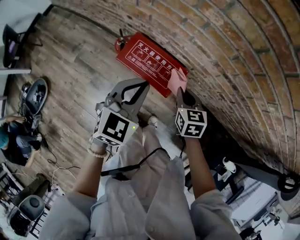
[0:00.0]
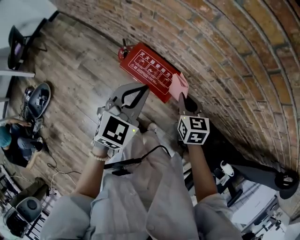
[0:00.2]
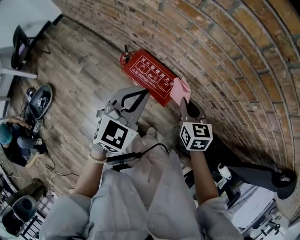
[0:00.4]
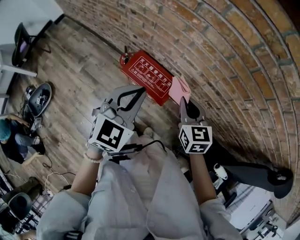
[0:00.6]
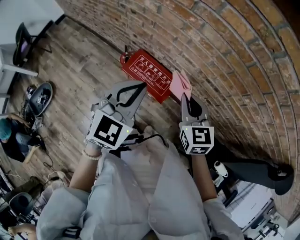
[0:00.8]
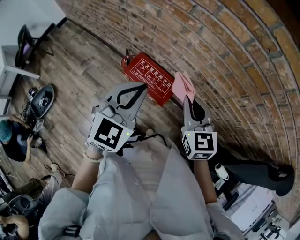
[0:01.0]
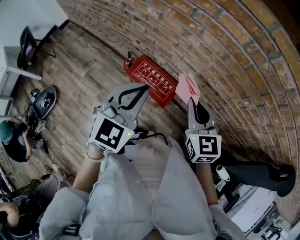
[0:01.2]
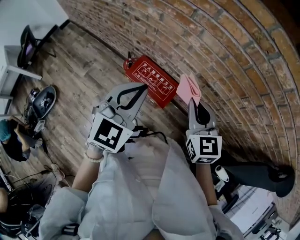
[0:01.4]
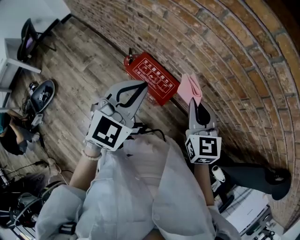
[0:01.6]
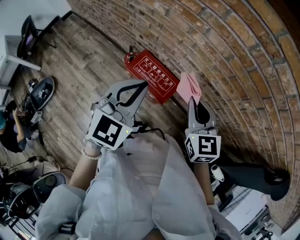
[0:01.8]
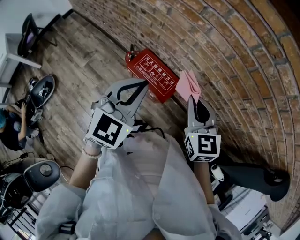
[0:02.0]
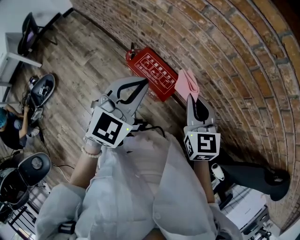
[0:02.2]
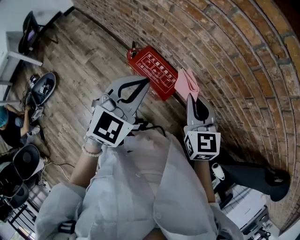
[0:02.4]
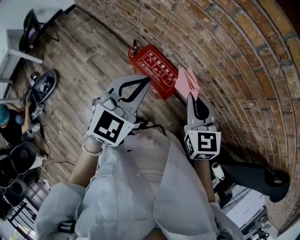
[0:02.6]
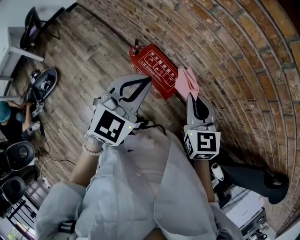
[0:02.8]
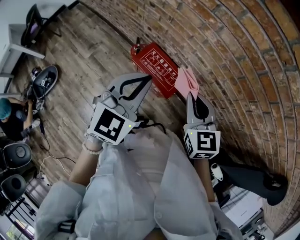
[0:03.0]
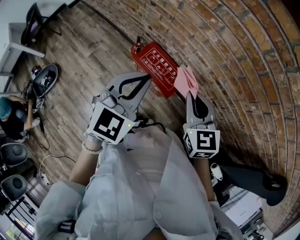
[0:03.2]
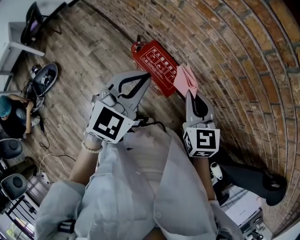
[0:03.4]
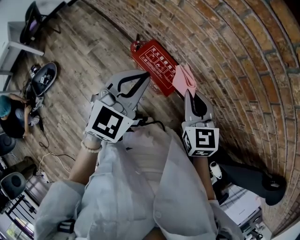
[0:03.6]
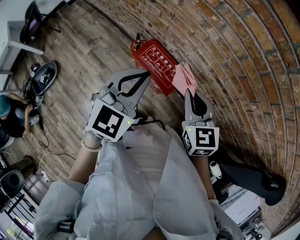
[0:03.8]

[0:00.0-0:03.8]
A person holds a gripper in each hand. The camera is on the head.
0:00.0 to 0:01.2: Both grippers travel together upward, roughly 25 cm. The right gripper rotates approximately 30 degrees.
0:01.2 to 0:03.8: The grippers stay close to where they were, moving slightly.

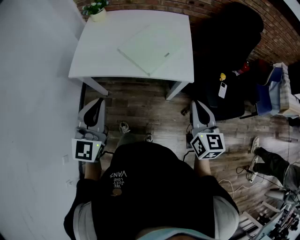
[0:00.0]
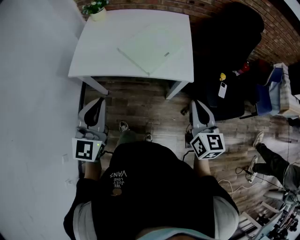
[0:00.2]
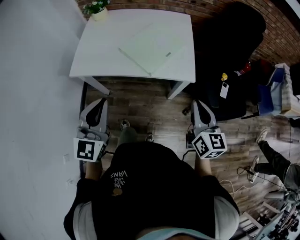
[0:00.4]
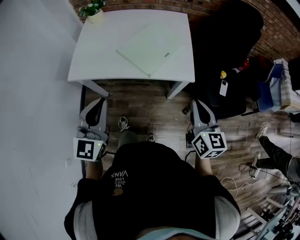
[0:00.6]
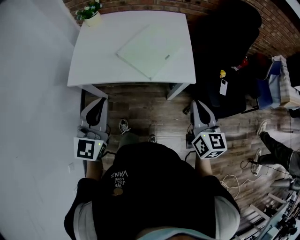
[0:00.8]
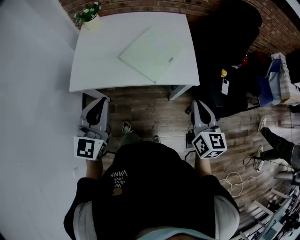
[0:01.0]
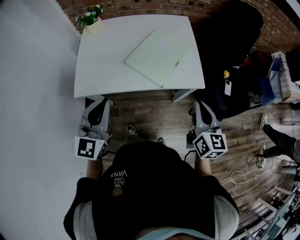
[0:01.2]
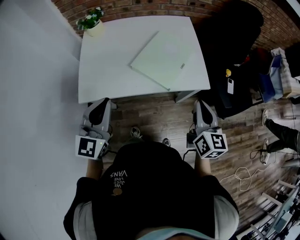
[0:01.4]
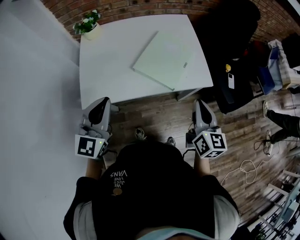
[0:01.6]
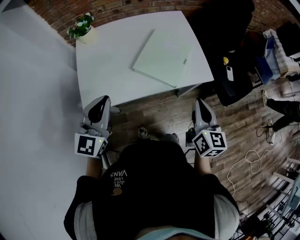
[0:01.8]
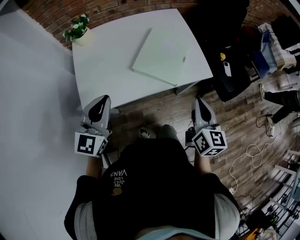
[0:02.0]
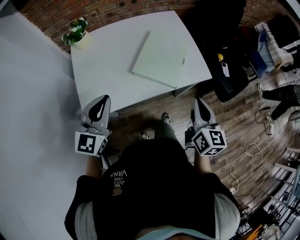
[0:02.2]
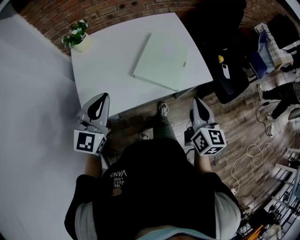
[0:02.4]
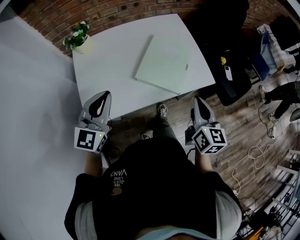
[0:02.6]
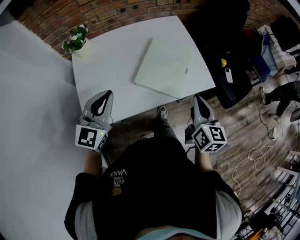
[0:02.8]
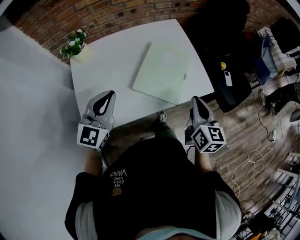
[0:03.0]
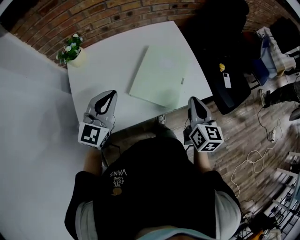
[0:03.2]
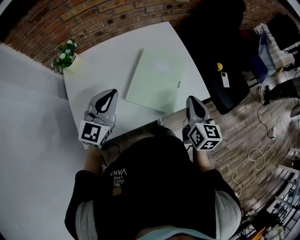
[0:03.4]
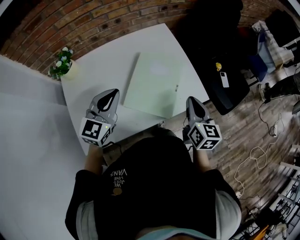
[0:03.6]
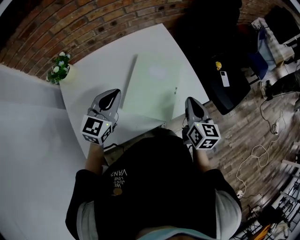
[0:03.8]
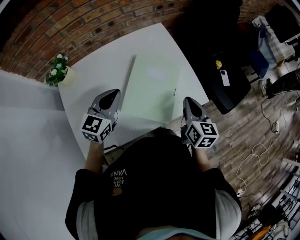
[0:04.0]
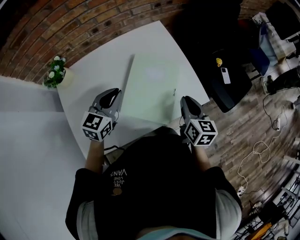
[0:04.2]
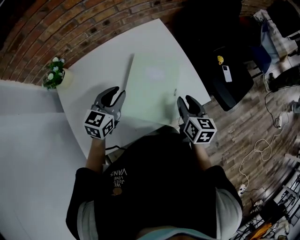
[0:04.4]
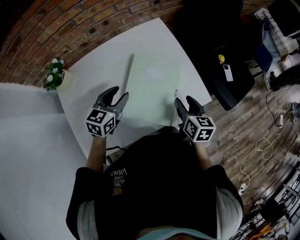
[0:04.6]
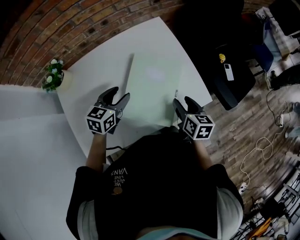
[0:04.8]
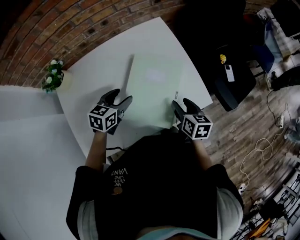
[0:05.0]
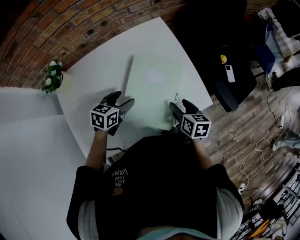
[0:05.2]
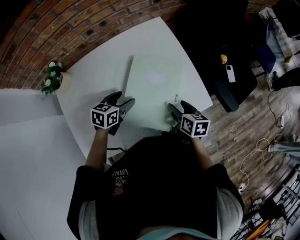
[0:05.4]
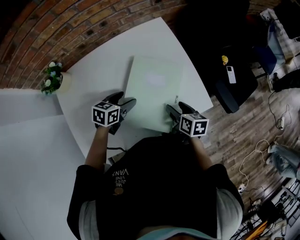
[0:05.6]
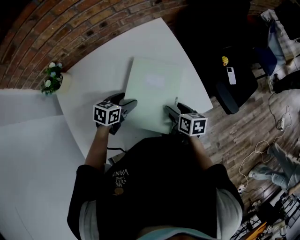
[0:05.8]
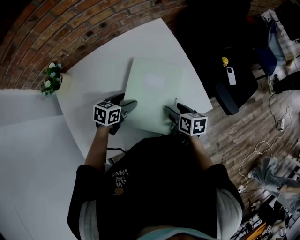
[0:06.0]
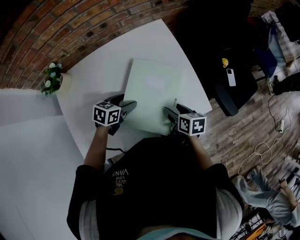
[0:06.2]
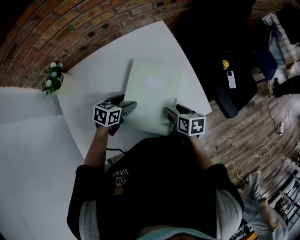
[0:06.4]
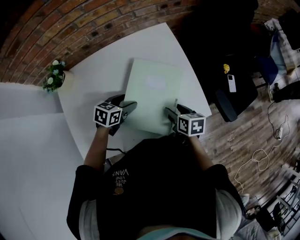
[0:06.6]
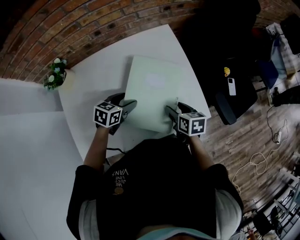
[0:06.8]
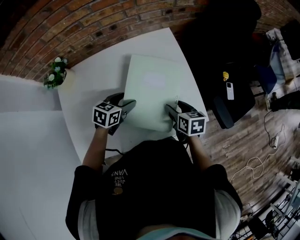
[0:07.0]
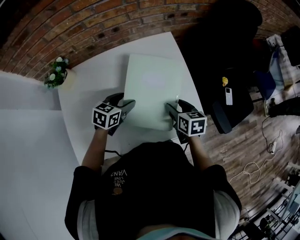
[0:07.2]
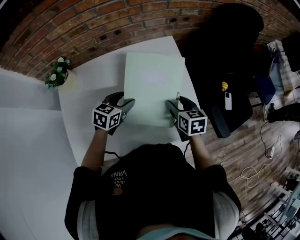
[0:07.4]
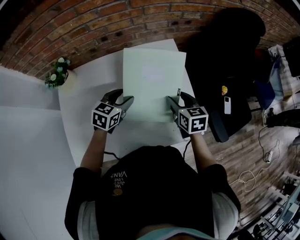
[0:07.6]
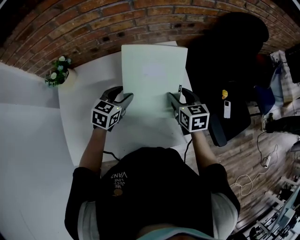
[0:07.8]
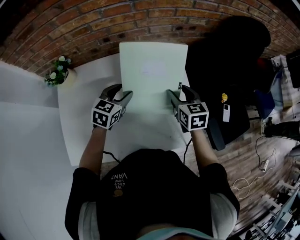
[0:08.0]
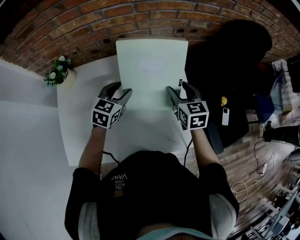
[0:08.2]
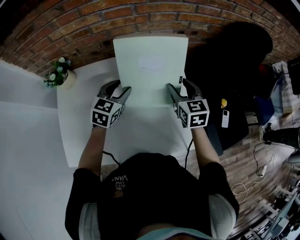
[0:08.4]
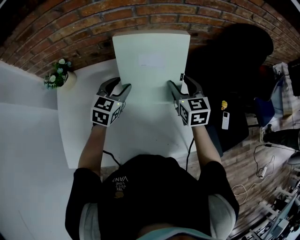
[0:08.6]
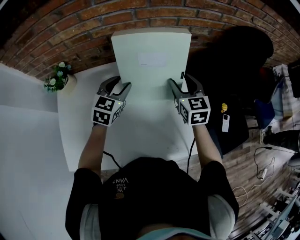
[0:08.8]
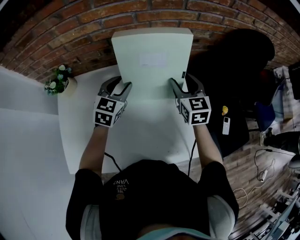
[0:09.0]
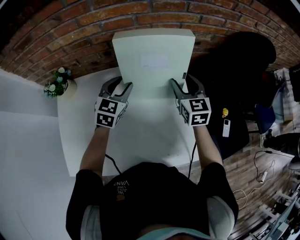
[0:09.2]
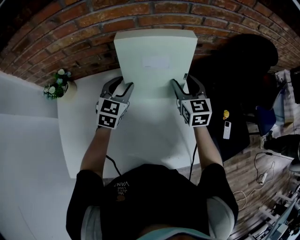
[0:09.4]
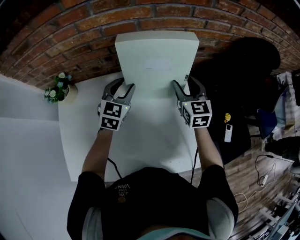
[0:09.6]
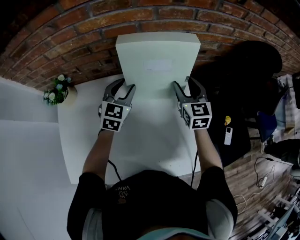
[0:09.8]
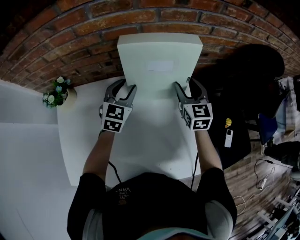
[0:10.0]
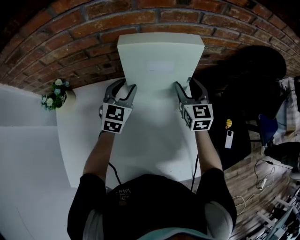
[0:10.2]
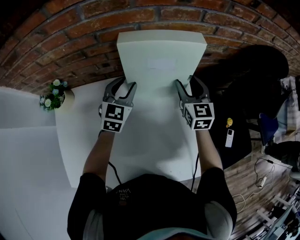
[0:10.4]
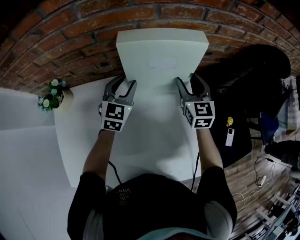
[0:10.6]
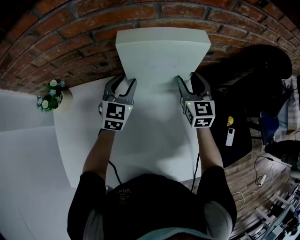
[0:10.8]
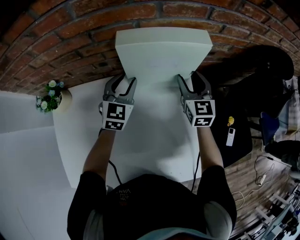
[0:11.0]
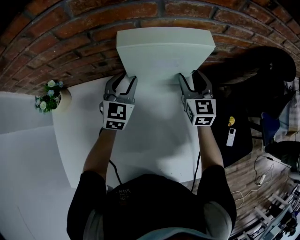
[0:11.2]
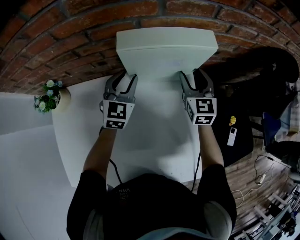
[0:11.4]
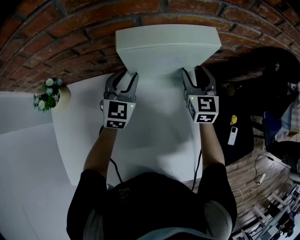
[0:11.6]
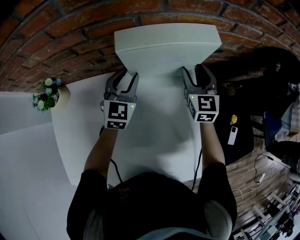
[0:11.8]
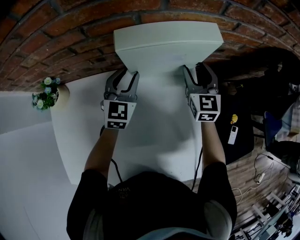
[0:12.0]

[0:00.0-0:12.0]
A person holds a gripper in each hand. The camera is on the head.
0:00.0 to 0:01.6: The right gripper heads to the left and forward, covering some 15 cm, and swivels about 20 degrees; the left gripper is displaced forward and to the left by about 20 cm.
0:01.6 to 0:03.0: The right gripper travels forward by roughly 5 cm. Meanwhile the left gripper goes about 15 cm forward.
0:03.0 to 0:04.4: Both grippers travel together forward and downward, approximately 15 cm. The right gripper opens its fingers, while the left gripper changes its angle by roughly 20 degrees.
0:04.4 to 0:06.0: Both grippers move downward, roughly 10 cm. The right gripper rotates about 30 degrees, and opens up. Meanwhile the left gripper swivels approximately 30 degrees, and opens its fingers.
0:06.0 to 0:07.6: The left gripper heads upward and forward, covering approximately 10 cm, and rotates about 20 degrees. Meanwhile the right gripper moves forward and upward, some 15 cm, and rotates about 30 degrees.
0:07.6 to 0:09.0: Both grippers move forward and upward, some 15 cm. The right gripper turns by some 20 degrees. Meanwhile the left gripper changes its angle by some 20 degrees.
0:09.0 to 0:10.4: Both grippers travel together forward, roughly 10 cm.
0:10.4 to 0:12.0: The right gripper is displaced forward by some 5 cm.

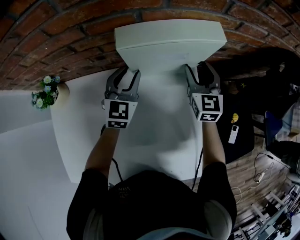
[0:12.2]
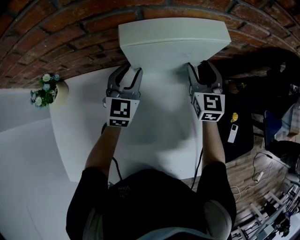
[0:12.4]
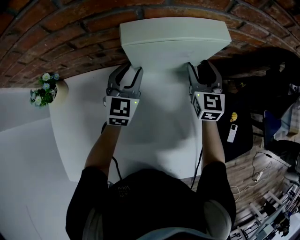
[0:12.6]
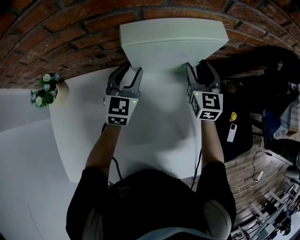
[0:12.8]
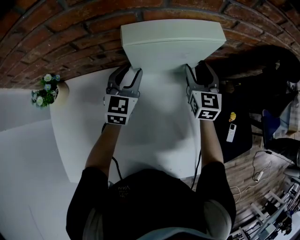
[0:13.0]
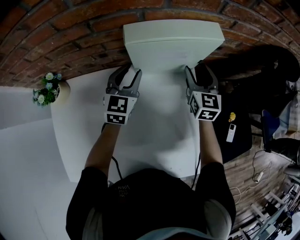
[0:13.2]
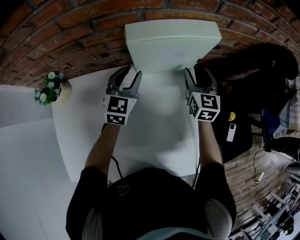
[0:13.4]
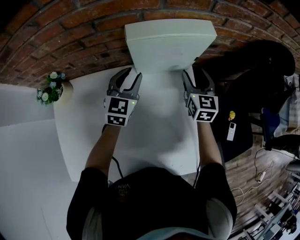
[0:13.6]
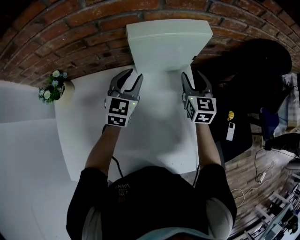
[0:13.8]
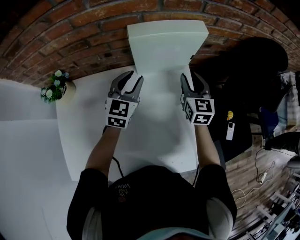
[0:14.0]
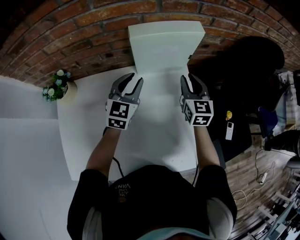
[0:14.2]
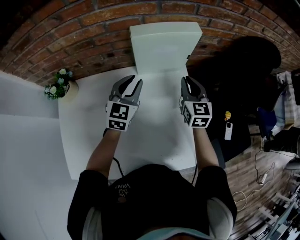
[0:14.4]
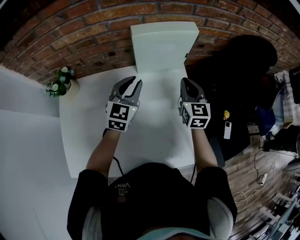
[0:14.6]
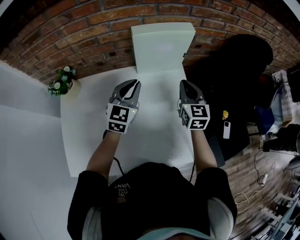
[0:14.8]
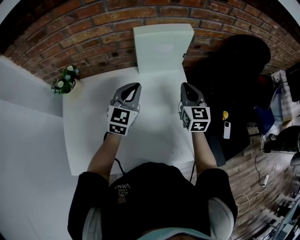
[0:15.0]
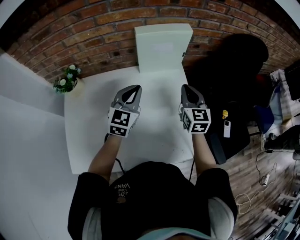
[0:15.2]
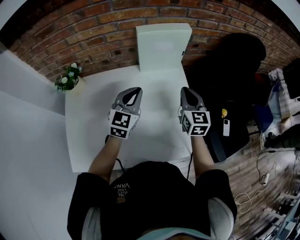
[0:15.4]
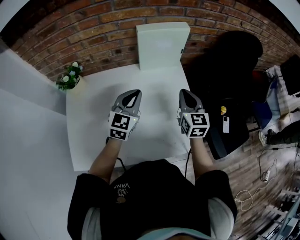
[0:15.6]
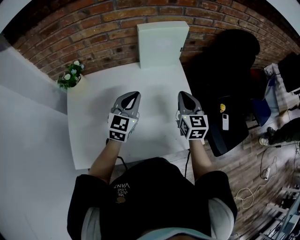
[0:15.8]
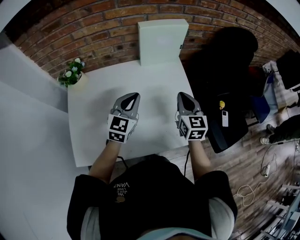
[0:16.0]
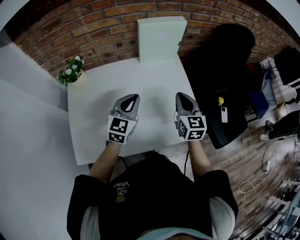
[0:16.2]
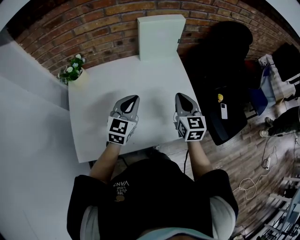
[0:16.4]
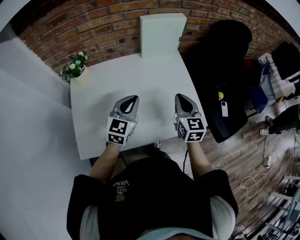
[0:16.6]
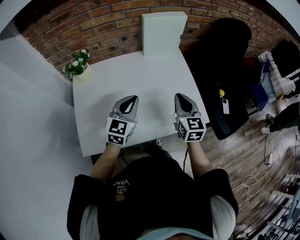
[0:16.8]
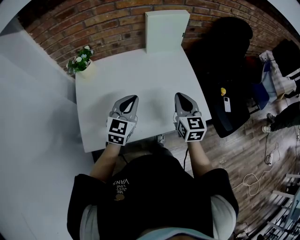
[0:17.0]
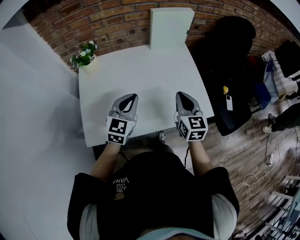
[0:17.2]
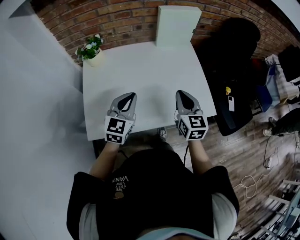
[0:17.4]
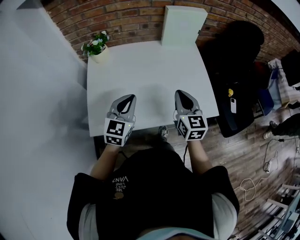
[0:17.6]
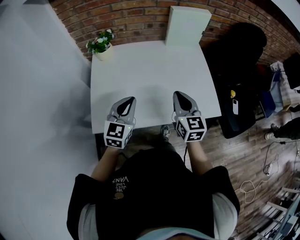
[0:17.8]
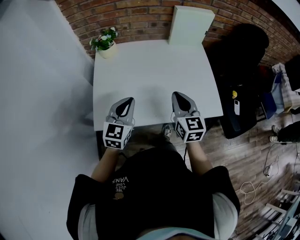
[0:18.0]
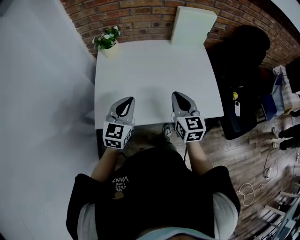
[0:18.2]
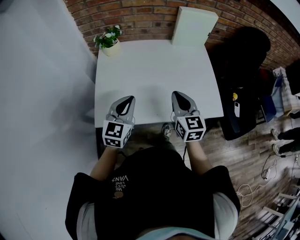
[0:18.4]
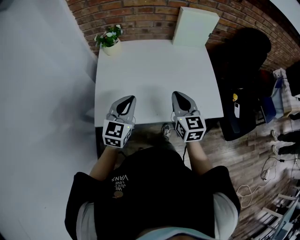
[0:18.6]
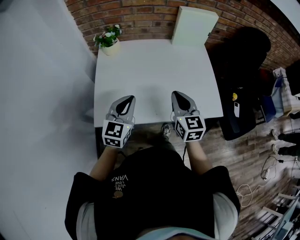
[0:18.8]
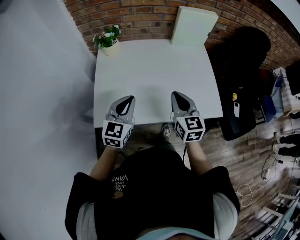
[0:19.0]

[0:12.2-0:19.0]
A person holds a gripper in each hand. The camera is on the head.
0:12.2 to 0:13.6: There are only small adjustments of the grippers.
0:13.6 to 0:15.0: The grippers both shift backward and upward by approximately 15 cm. The right gripper closes its fingers; the left gripper closes up.
0:15.0 to 0:16.2: Both grippers move backward, approximately 15 cm.
0:16.2 to 0:17.6: Both grippers travel together backward and to the left, about 20 cm.
0:17.6 to 0:19.0: The left gripper ends up approximately 5 cm from where it was. Meanwhile the right gripper goes some 5 cm to the left.

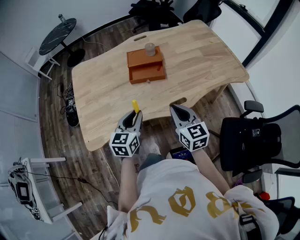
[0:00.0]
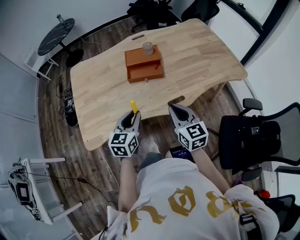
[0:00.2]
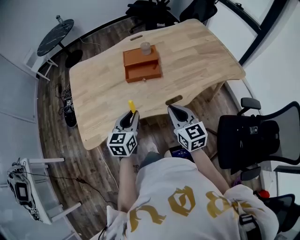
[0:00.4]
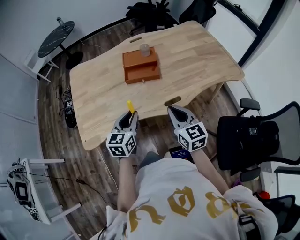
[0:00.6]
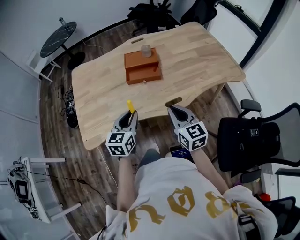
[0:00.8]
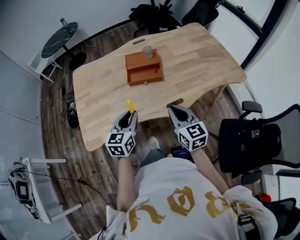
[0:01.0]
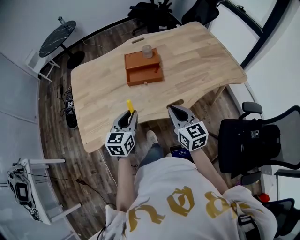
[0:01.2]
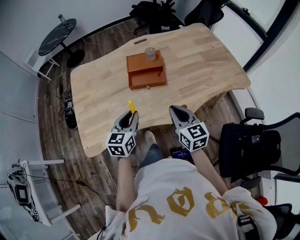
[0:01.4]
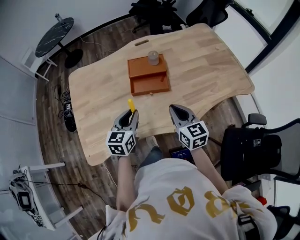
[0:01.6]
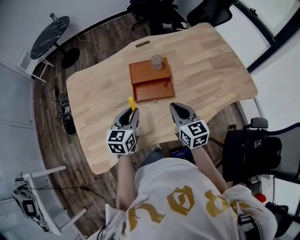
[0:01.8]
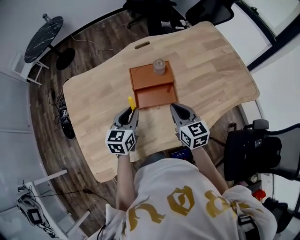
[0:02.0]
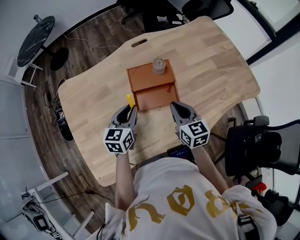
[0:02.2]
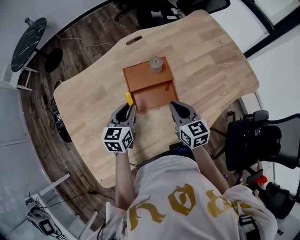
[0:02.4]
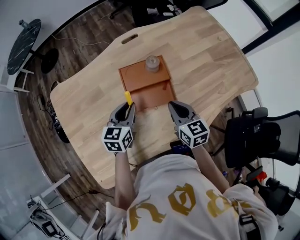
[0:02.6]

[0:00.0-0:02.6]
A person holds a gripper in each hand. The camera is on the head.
0:00.0 to 0:01.2: There are only small adjustments of the grippers.
0:01.2 to 0:02.6: Both grippers travel together forward, roughly 30 cm.
